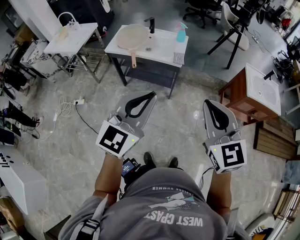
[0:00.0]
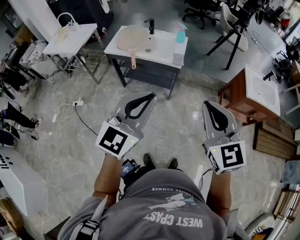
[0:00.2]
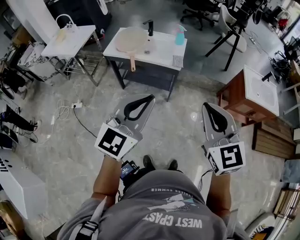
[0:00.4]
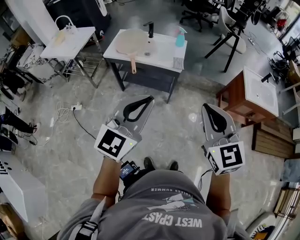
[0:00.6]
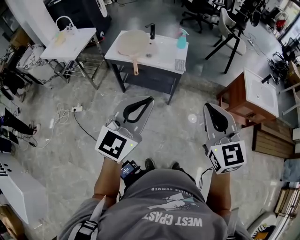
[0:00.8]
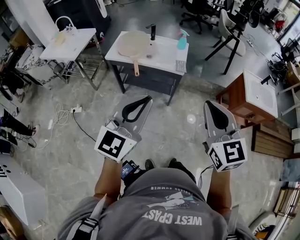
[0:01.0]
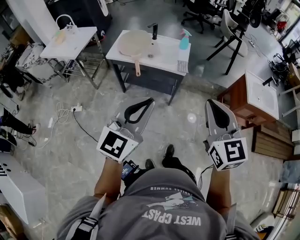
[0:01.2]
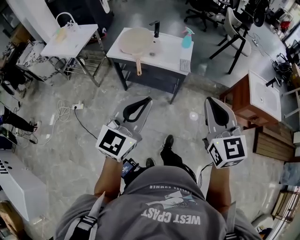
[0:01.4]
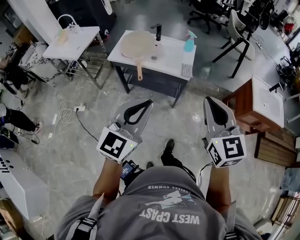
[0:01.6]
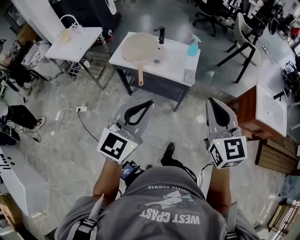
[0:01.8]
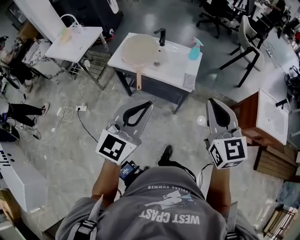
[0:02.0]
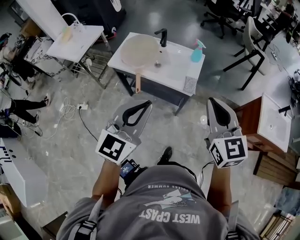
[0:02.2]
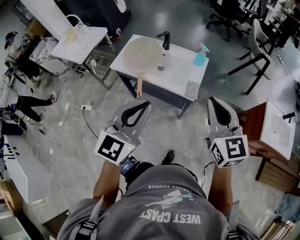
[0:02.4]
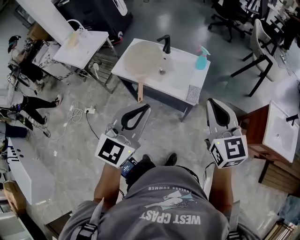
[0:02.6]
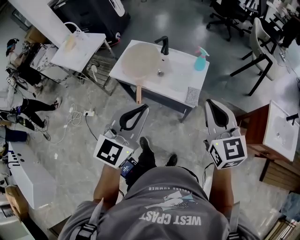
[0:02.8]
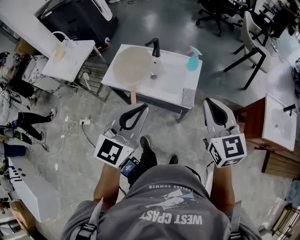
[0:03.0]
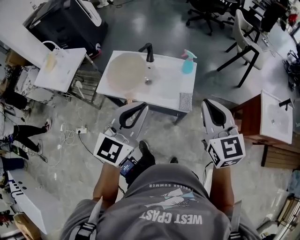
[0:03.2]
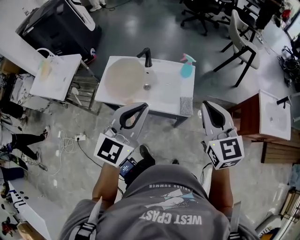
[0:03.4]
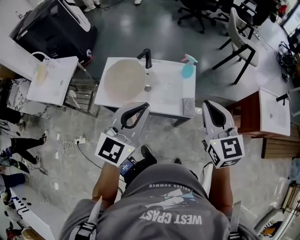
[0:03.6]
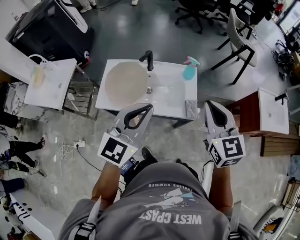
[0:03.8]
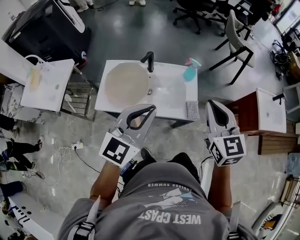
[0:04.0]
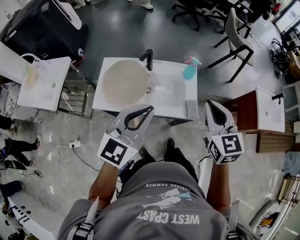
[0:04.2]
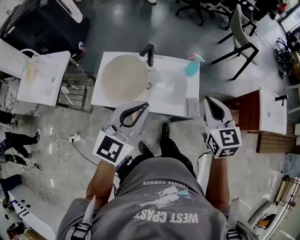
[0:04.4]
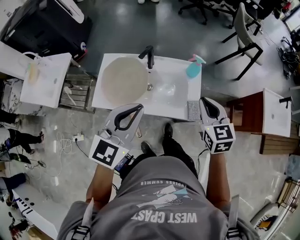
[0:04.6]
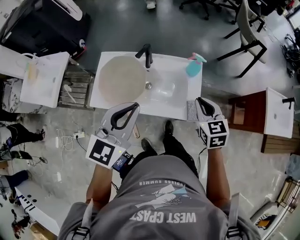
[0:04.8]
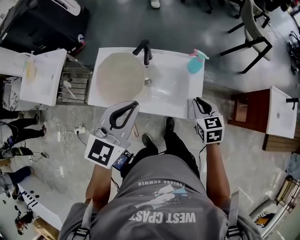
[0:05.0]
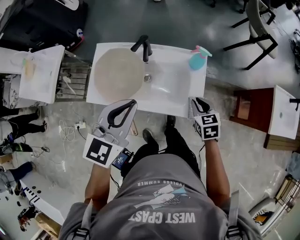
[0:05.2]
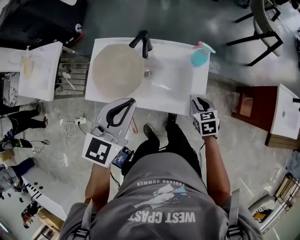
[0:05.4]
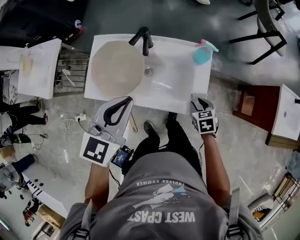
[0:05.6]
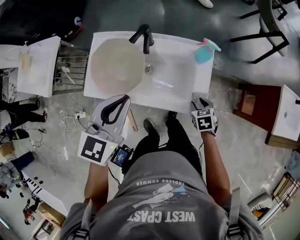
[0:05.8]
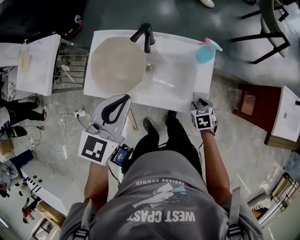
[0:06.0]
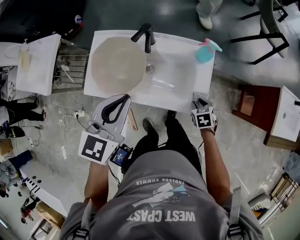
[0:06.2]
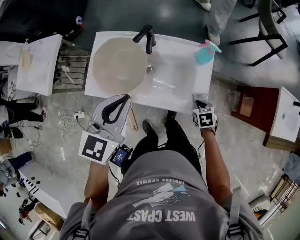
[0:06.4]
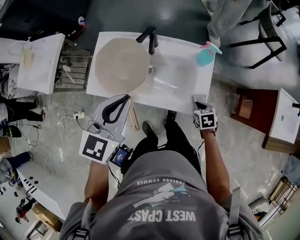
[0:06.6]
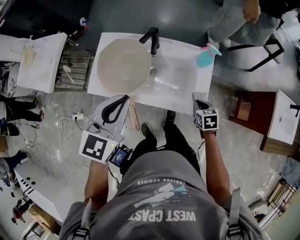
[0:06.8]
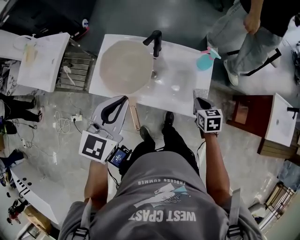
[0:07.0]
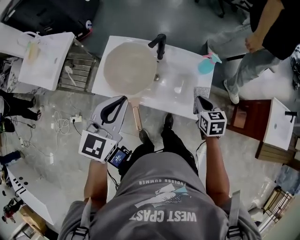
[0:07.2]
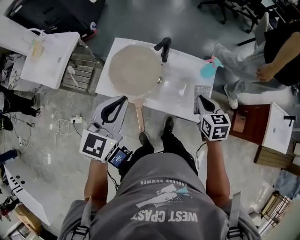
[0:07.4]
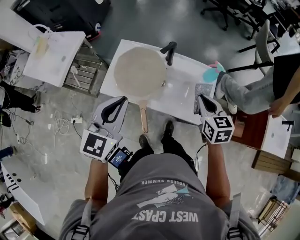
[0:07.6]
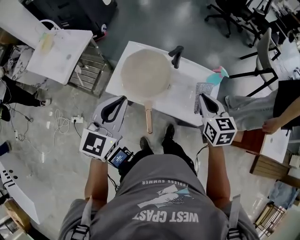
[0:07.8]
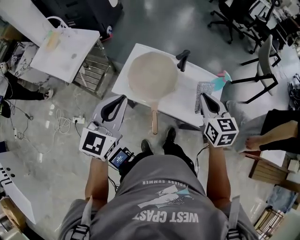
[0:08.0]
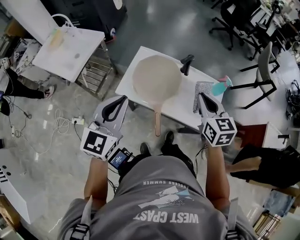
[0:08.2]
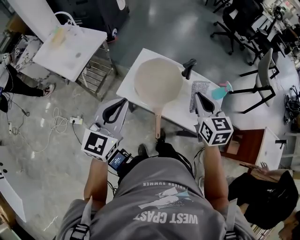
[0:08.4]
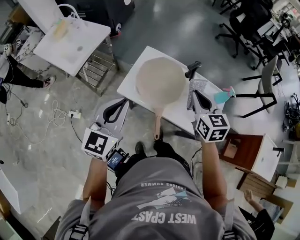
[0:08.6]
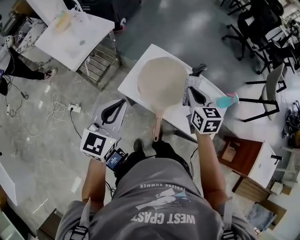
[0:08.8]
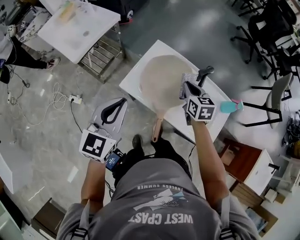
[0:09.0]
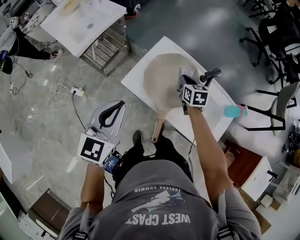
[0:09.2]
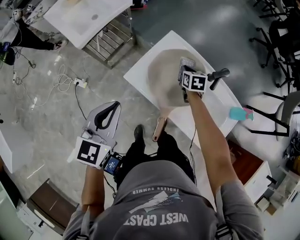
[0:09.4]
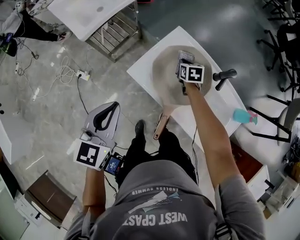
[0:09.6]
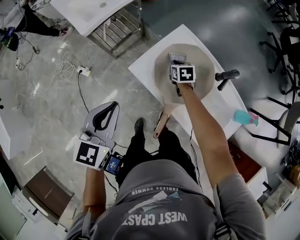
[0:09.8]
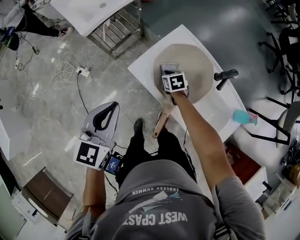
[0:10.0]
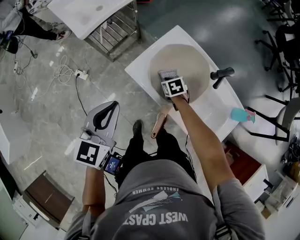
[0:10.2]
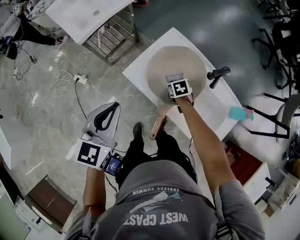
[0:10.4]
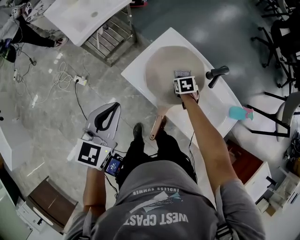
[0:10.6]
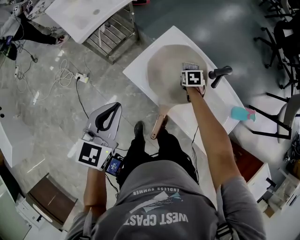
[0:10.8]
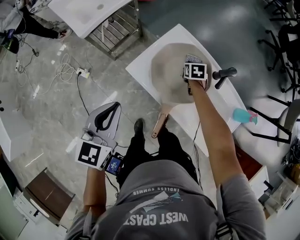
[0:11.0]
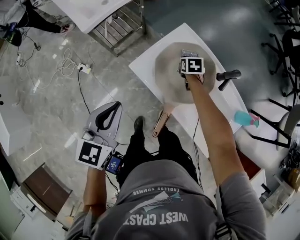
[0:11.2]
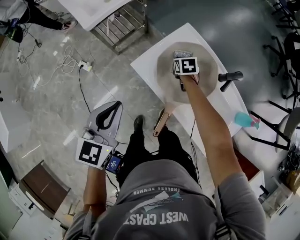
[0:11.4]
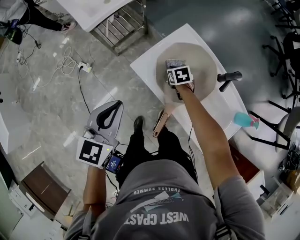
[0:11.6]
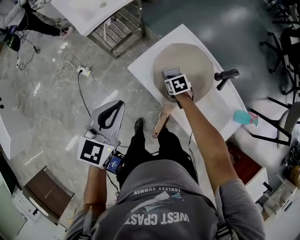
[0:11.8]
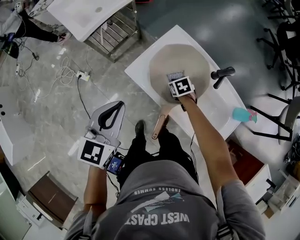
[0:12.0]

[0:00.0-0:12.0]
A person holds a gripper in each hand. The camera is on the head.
0:00.0 to 0:01.6: The two grippers go some 15 cm forward and to the left.
0:01.6 to 0:03.0: The two grippers go about 30 cm forward.
0:03.0 to 0:04.4: The right gripper shifts about 20 cm forward, to the left and downward. Meanwhile the left gripper travels forward and to the left by roughly 20 cm.
0:04.4 to 0:06.0: The left gripper goes some 15 cm forward and downward, and swivels roughly 20 degrees. Meanwhile the right gripper heads downward, covering about 40 cm, tips its fingers downward by approximately 50 degrees, and opens.
0:06.0 to 0:07.6: The right gripper heads upward and to the left, covering about 30 cm, tips its fingers upward by about 30 degrees, and closes its fingers, while the left gripper moves to the left, backward and upward, approximately 15 cm.
0:07.6 to 0:09.0: The left gripper heads to the left, covering approximately 15 cm, while the right gripper heads to the left and forward, covering roughly 25 cm.
0:09.0 to 0:10.4: The left gripper heads downward, covering approximately 5 cm, while the right gripper shifts roughly 25 cm downward, and angles its fingers downward, by approximately 30 degrees.
0:10.4 to 0:12.0: The right gripper moves left and right over approximately 15 cm, changing direction 2 times.

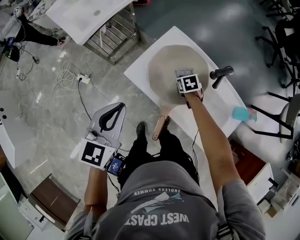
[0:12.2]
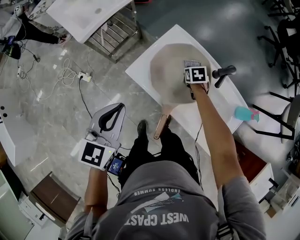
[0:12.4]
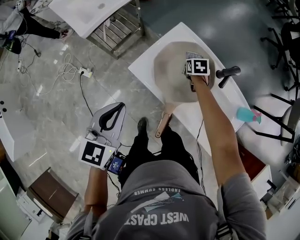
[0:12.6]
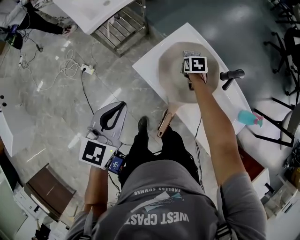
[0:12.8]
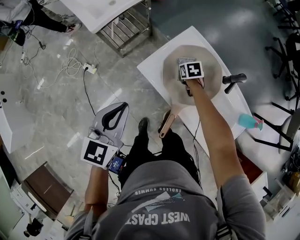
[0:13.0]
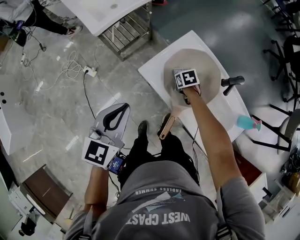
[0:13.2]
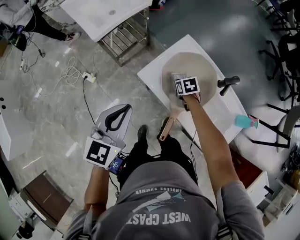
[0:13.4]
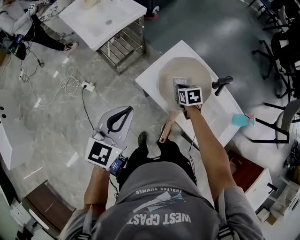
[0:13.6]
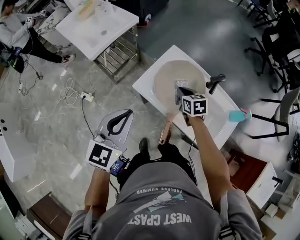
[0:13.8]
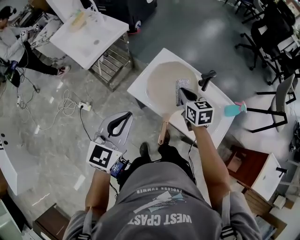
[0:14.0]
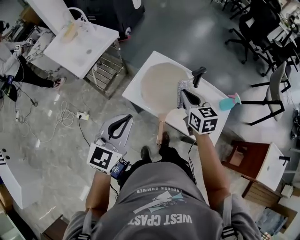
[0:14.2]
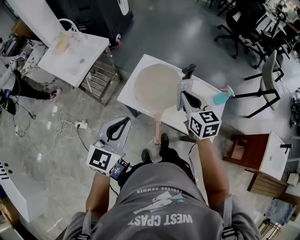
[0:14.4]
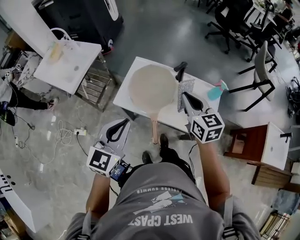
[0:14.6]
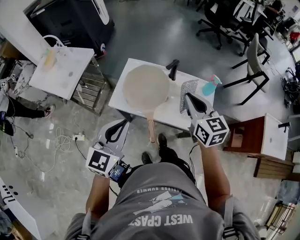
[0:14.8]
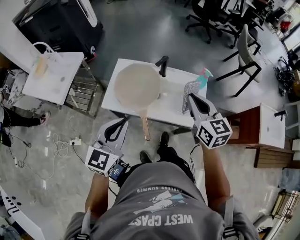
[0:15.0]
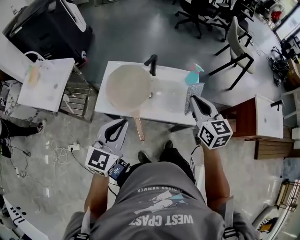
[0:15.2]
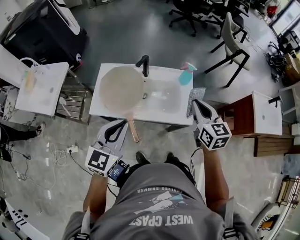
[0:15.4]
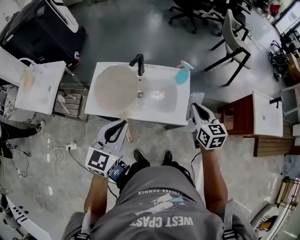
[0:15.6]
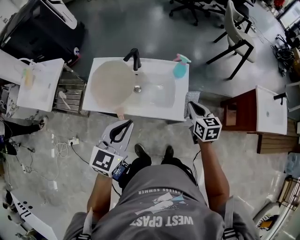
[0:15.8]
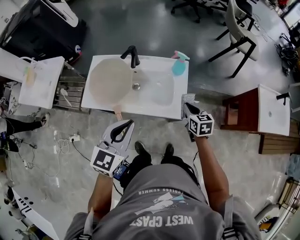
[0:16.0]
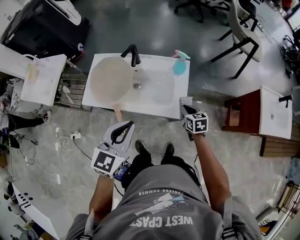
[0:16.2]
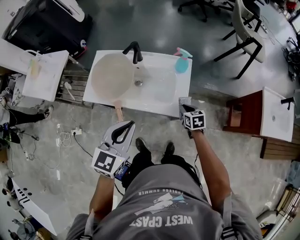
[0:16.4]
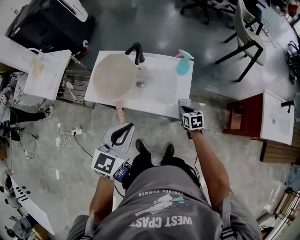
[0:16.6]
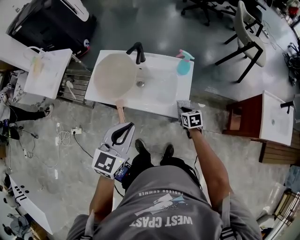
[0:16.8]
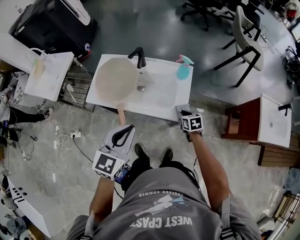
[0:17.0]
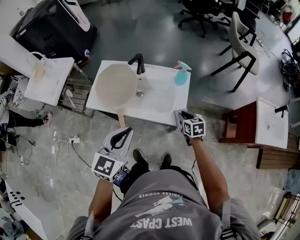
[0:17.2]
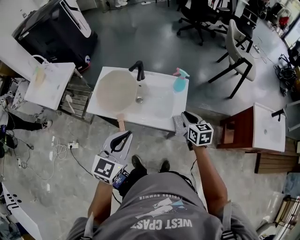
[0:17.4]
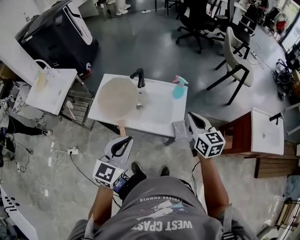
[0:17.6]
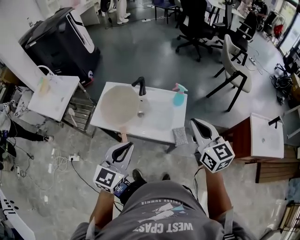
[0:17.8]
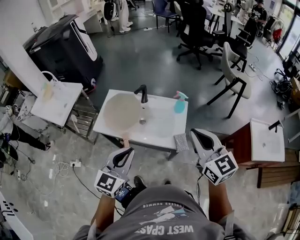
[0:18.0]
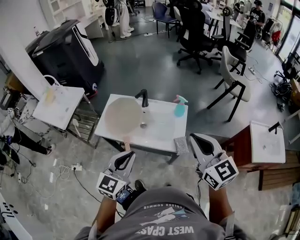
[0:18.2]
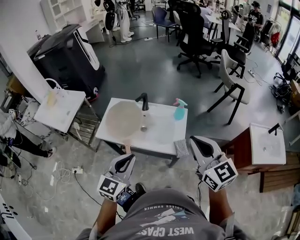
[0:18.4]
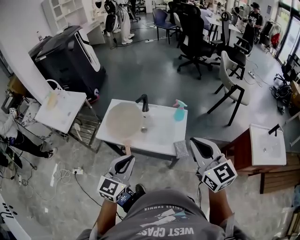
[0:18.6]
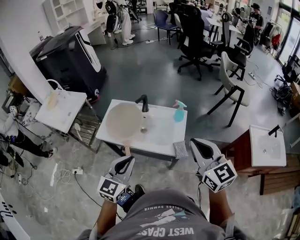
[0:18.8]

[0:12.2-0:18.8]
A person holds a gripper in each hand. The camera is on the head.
0:12.2 to 0:13.8: The right gripper moves upward, some 15 cm, and turns by some 20 degrees. Meanwhile the left gripper shifts about 5 cm upward.
0:13.8 to 0:15.4: The right gripper changes place by approximately 50 cm, and rotates some 50 degrees, while the left gripper moves roughly 20 cm, and changes its angle by roughly 30 degrees.
0:15.4 to 0:17.2: The left gripper travels to the right by some 15 cm. Meanwhile the right gripper is displaced downward by some 25 cm, and turns by some 30 degrees.
0:17.2 to 0:18.8: The left gripper travels backward by some 5 cm, while the right gripper goes roughly 40 cm upward, and tilts its fingers some 40 degrees upward.

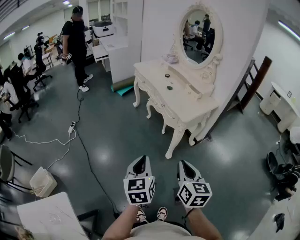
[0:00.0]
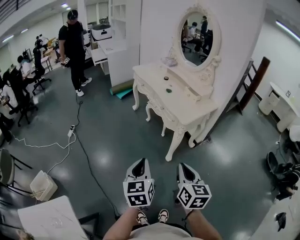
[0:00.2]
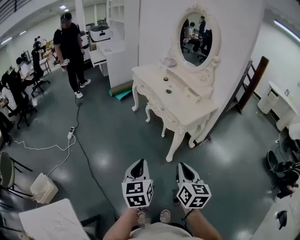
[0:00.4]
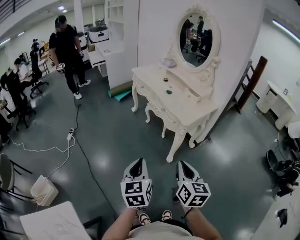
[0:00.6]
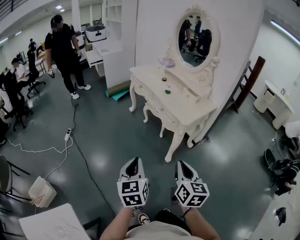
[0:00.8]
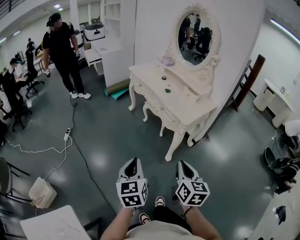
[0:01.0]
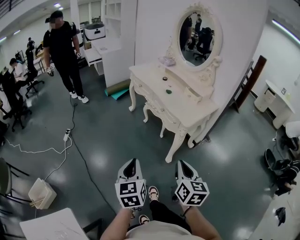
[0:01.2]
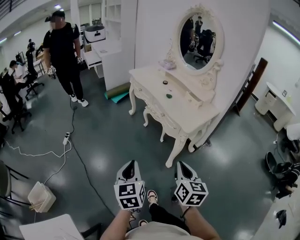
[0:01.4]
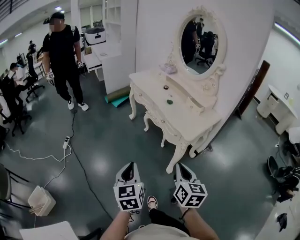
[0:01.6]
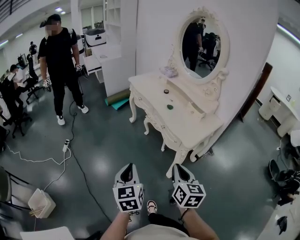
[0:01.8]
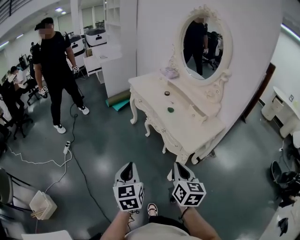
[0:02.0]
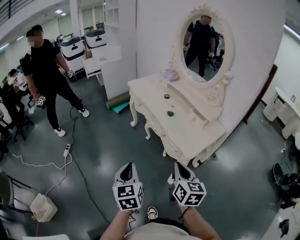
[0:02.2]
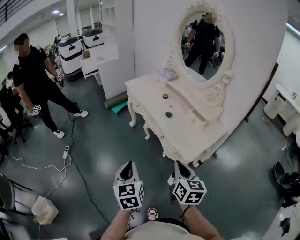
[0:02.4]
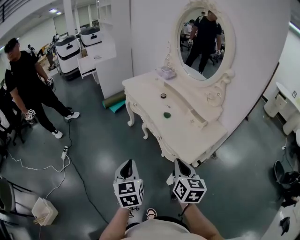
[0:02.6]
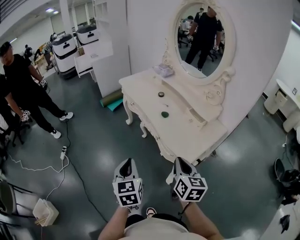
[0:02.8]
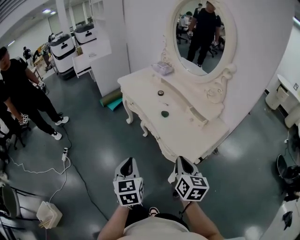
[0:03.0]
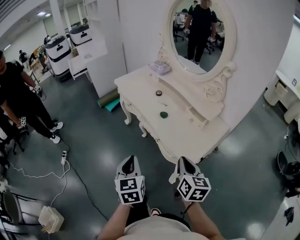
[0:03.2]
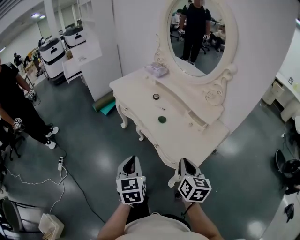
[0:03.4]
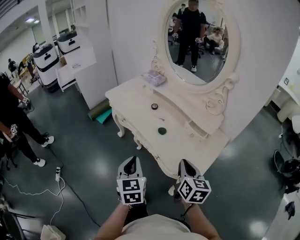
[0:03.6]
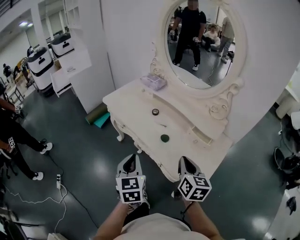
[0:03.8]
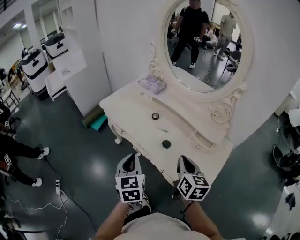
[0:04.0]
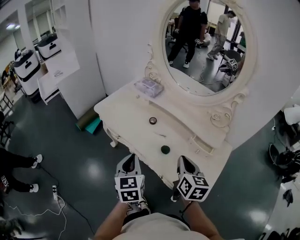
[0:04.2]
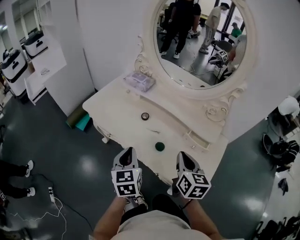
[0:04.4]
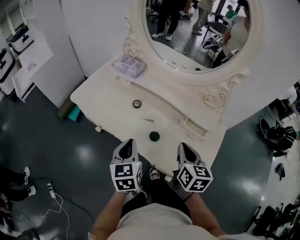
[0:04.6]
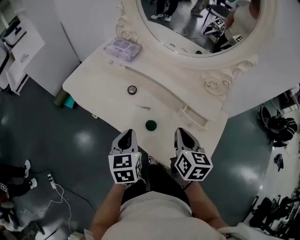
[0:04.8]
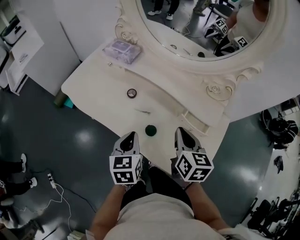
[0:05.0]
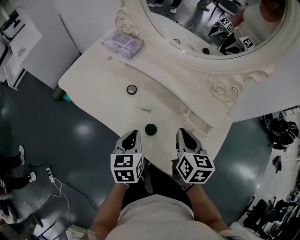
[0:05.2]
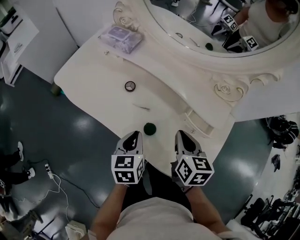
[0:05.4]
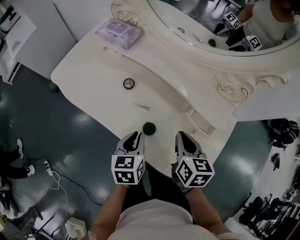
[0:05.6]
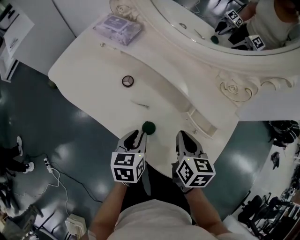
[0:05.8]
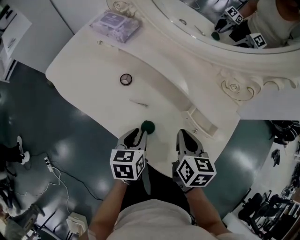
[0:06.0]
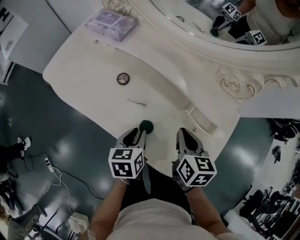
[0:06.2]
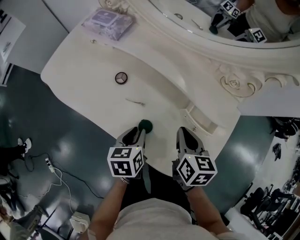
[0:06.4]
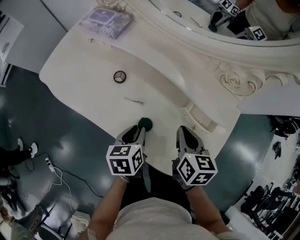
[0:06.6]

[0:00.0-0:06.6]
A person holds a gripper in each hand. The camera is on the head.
0:00.0 to 0:01.6: The left gripper shifts approximately 15 cm forward and to the left. The right gripper heads forward, covering about 15 cm.
0:01.6 to 0:03.2: The left gripper goes approximately 25 cm forward; the right gripper travels forward and to the right by about 25 cm.
0:03.2 to 0:05.0: The right gripper moves approximately 30 cm; the left gripper changes place by some 35 cm, and turns by some 30 degrees.
0:05.0 to 0:06.6: Both grippers move downward, some 10 cm. The left gripper changes its angle by about 20 degrees, and opens.
